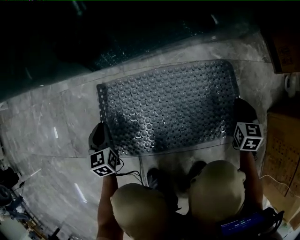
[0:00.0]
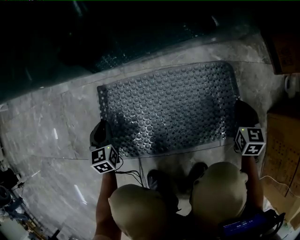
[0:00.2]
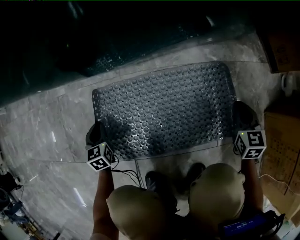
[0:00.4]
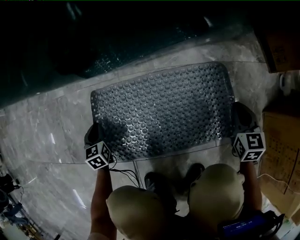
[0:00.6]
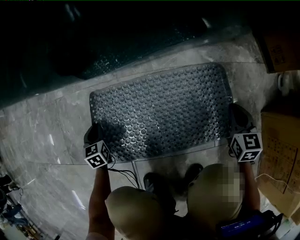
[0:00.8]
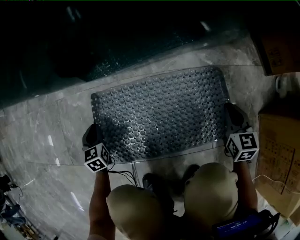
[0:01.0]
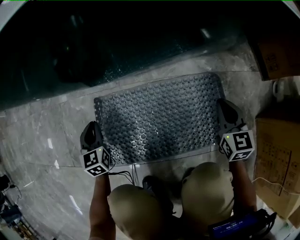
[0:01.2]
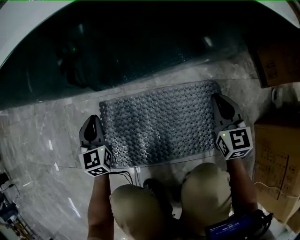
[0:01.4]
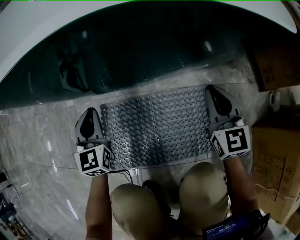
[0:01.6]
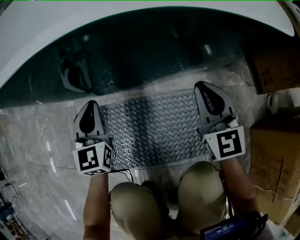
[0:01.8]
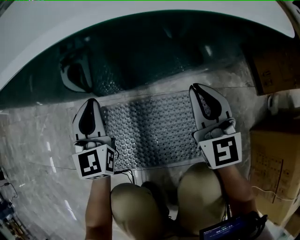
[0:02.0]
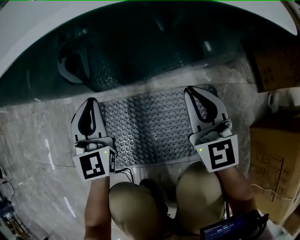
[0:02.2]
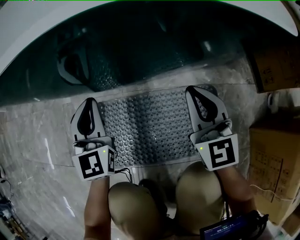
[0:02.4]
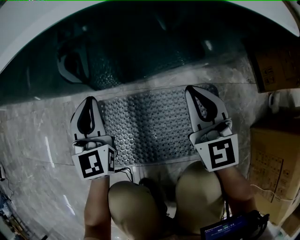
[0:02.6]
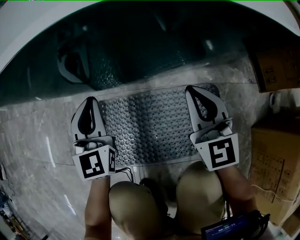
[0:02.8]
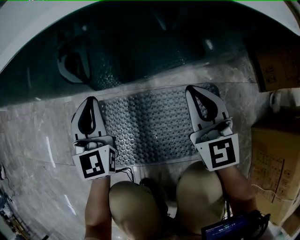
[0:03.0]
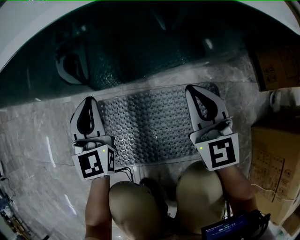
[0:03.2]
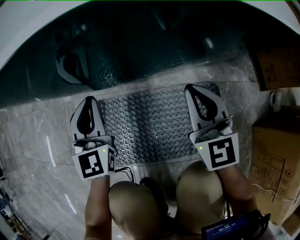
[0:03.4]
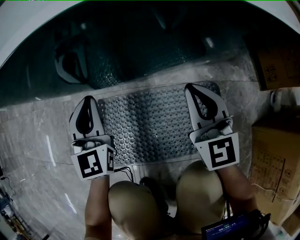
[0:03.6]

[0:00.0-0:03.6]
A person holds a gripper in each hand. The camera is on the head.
0:00.0 to 0:01.8: The right gripper is displaced upward, to the left and forward by approximately 35 cm, and angles its fingers upward, by roughly 30 degrees. Meanwhile the left gripper travels upward and forward by about 25 cm, and changes its angle by approximately 30 degrees.
0:01.8 to 0:03.6: The grippers make only small movements.

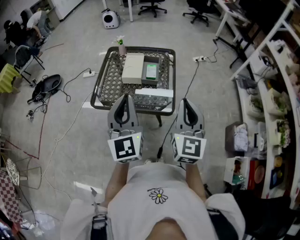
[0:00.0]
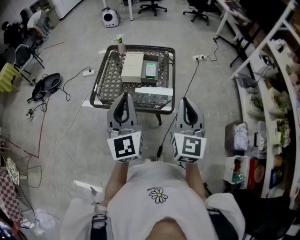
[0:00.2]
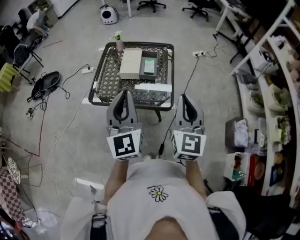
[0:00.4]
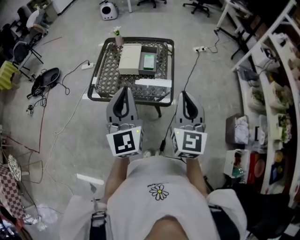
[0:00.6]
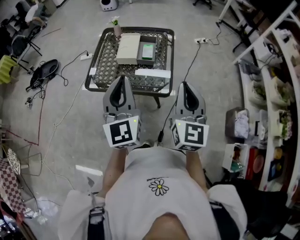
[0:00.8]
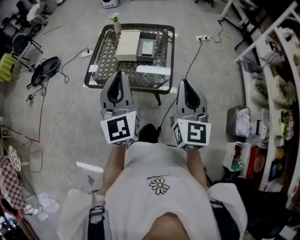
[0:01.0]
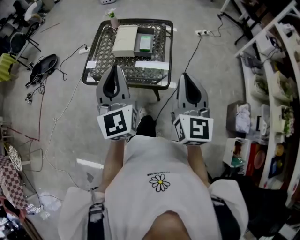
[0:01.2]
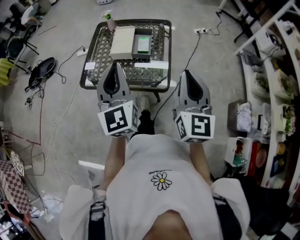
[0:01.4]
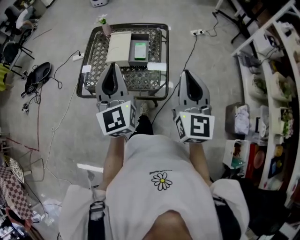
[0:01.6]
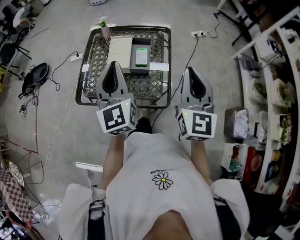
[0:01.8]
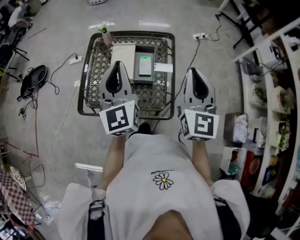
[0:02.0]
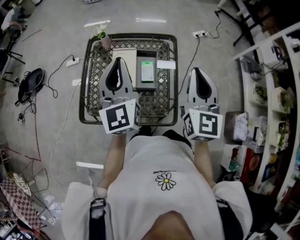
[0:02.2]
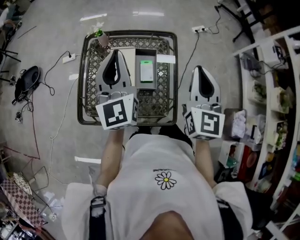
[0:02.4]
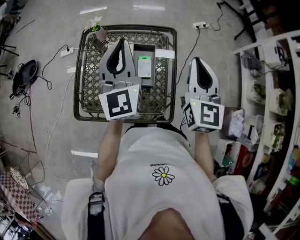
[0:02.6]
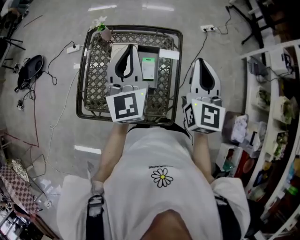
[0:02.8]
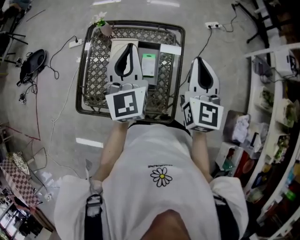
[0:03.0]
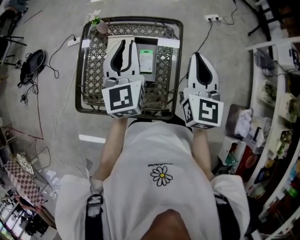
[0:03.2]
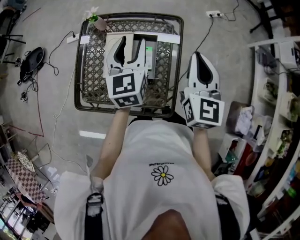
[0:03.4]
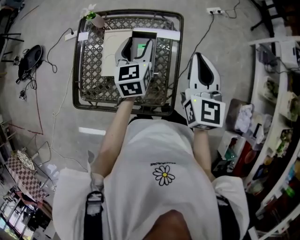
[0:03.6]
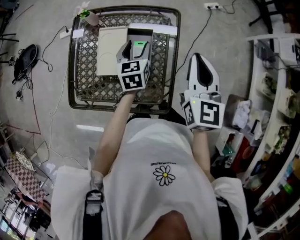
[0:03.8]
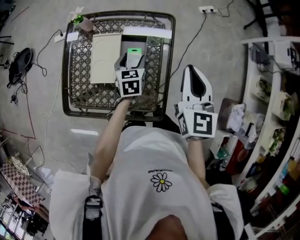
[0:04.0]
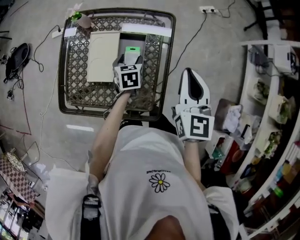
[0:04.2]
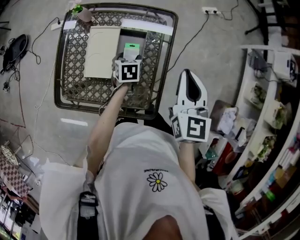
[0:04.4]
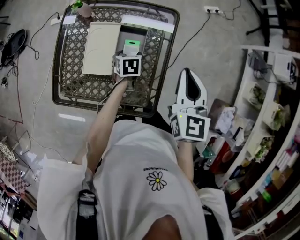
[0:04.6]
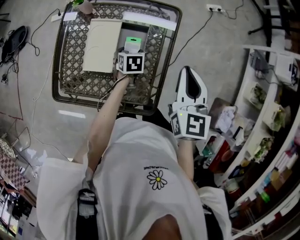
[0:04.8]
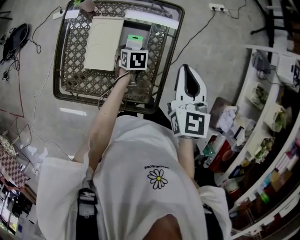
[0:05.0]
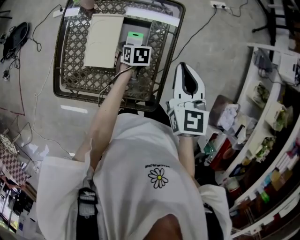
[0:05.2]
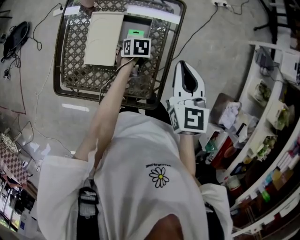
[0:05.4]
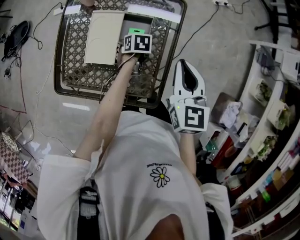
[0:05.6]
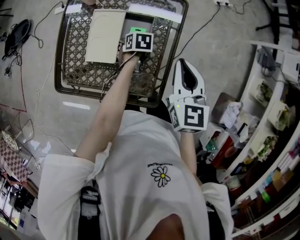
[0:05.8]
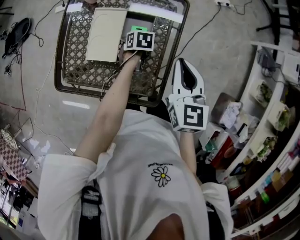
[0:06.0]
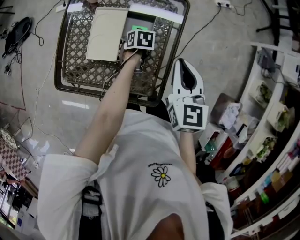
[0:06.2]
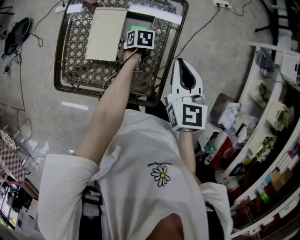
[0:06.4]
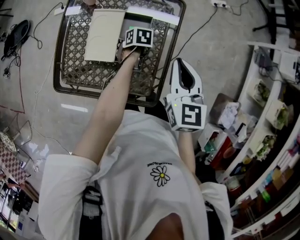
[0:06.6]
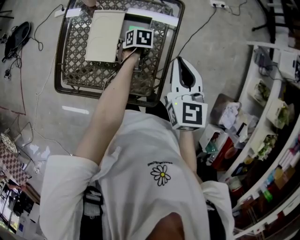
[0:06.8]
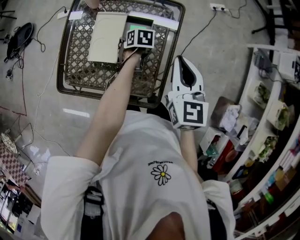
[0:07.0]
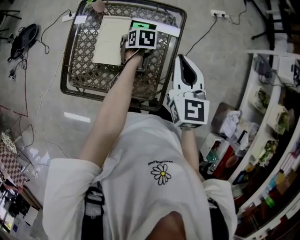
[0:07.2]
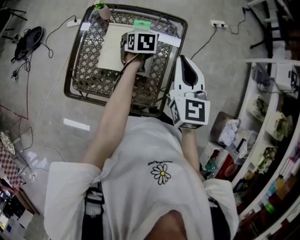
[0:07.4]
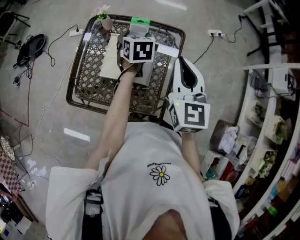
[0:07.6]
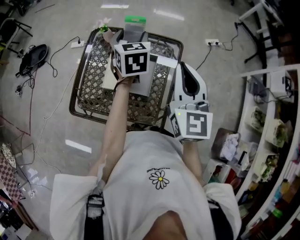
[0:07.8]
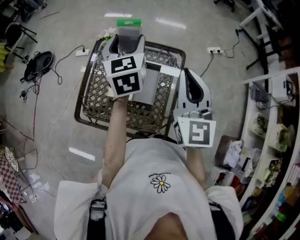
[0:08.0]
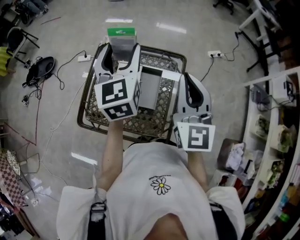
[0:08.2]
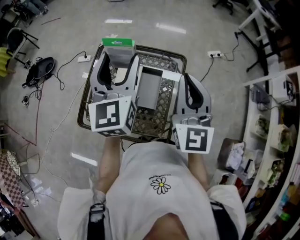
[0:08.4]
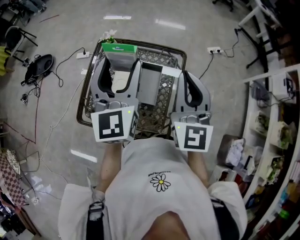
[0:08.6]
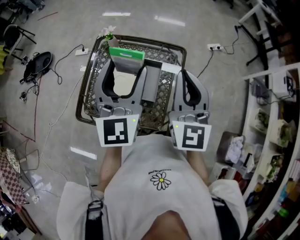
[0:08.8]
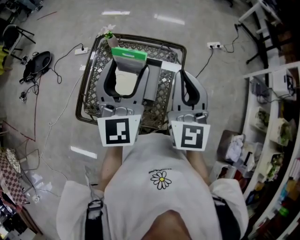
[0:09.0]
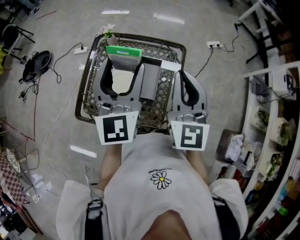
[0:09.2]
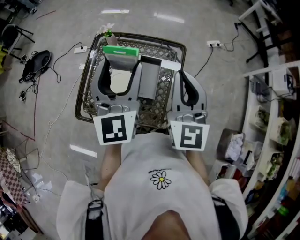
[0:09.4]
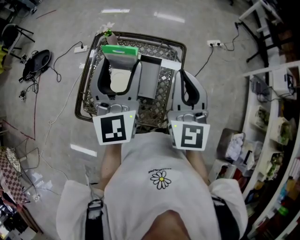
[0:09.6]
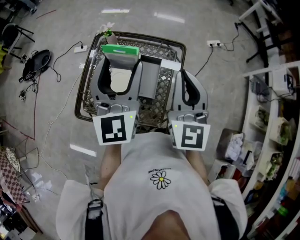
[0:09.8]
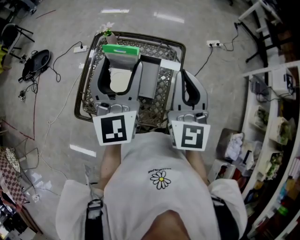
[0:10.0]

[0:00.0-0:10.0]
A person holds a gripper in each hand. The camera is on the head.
0:00.0 to 0:01.4: The right gripper moves approximately 5 cm. Meanwhile the left gripper goes about 5 cm forward.
0:01.4 to 0:02.8: Both grippers move forward, approximately 35 cm.
0:02.8 to 0:04.2: The left gripper goes roughly 35 cm downward, angles its fingers downward, by approximately 50 degrees, and opens. The right gripper is displaced downward by about 10 cm.
0:04.2 to 0:05.8: The left gripper is displaced downward by approximately 10 cm, and rotates approximately 20 degrees. The right gripper shifts by some 5 cm.
0:05.8 to 0:07.2: The left gripper travels upward by roughly 10 cm.
0:07.2 to 0:08.6: The left gripper moves upward, some 40 cm, and tips its fingers upward by some 70 degrees; the right gripper moves upward, approximately 15 cm, and rotates about 20 degrees.
0:08.6 to 0:10.0: There are only small adjustments of the grippers.

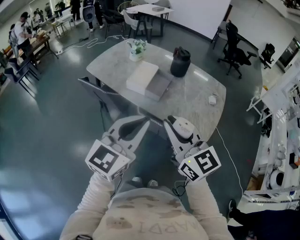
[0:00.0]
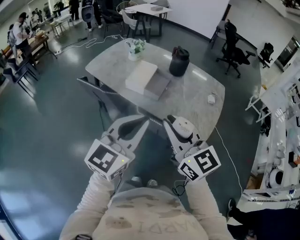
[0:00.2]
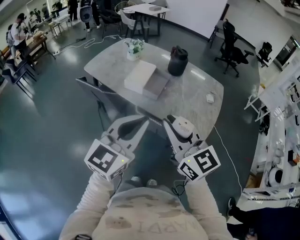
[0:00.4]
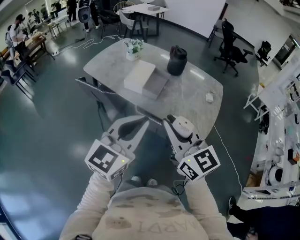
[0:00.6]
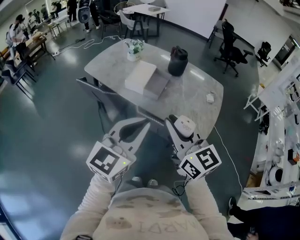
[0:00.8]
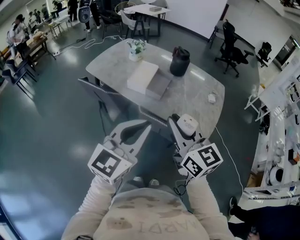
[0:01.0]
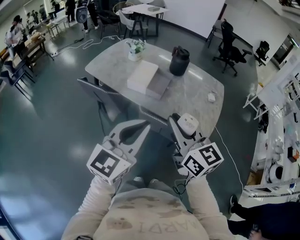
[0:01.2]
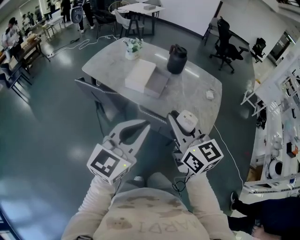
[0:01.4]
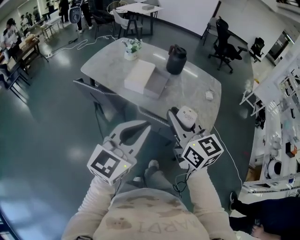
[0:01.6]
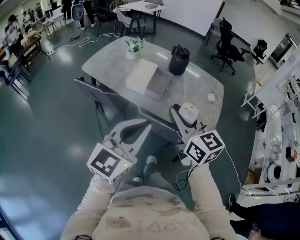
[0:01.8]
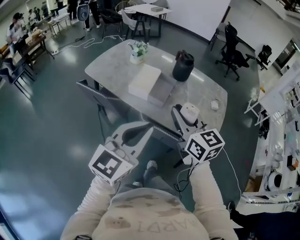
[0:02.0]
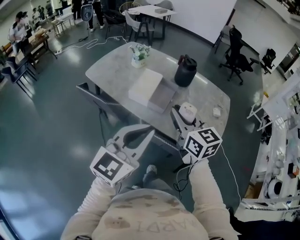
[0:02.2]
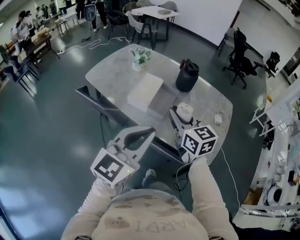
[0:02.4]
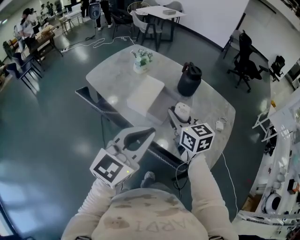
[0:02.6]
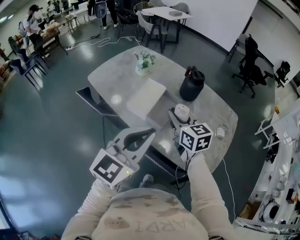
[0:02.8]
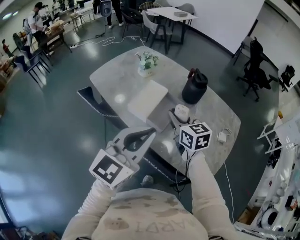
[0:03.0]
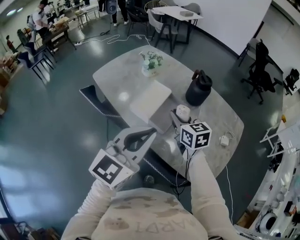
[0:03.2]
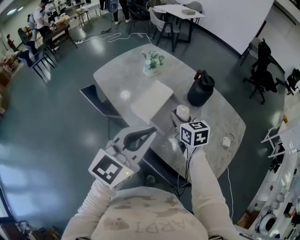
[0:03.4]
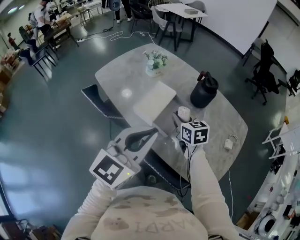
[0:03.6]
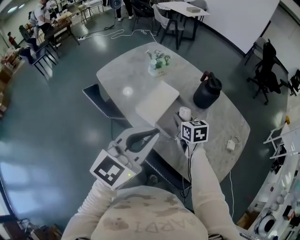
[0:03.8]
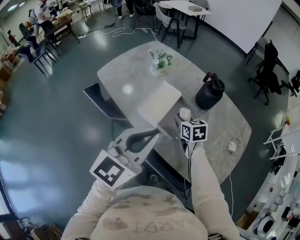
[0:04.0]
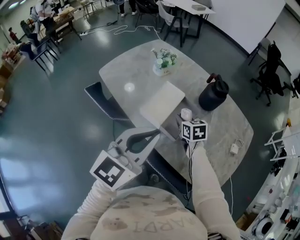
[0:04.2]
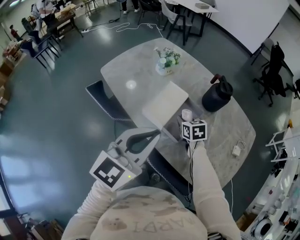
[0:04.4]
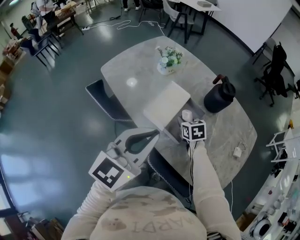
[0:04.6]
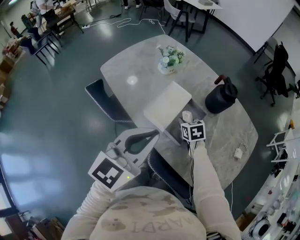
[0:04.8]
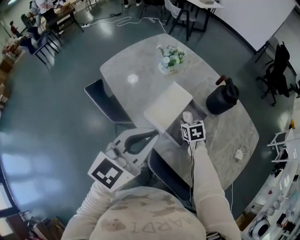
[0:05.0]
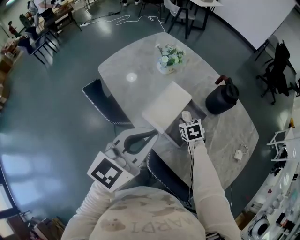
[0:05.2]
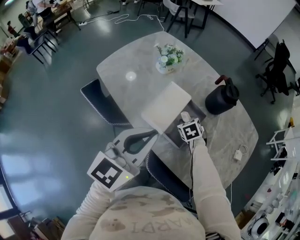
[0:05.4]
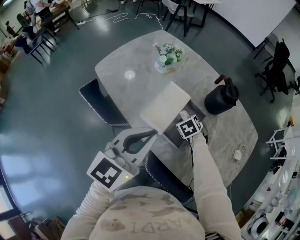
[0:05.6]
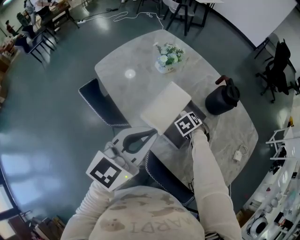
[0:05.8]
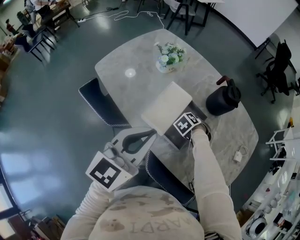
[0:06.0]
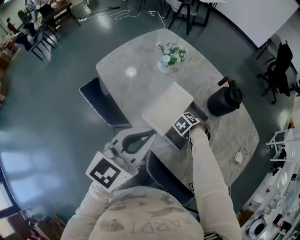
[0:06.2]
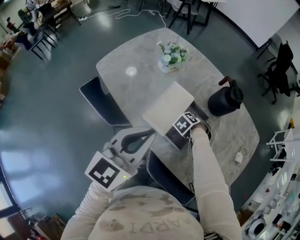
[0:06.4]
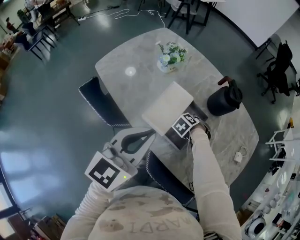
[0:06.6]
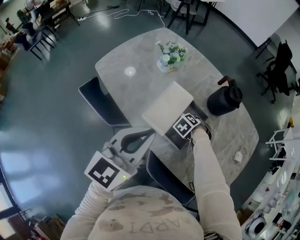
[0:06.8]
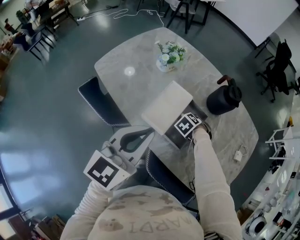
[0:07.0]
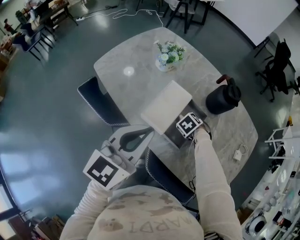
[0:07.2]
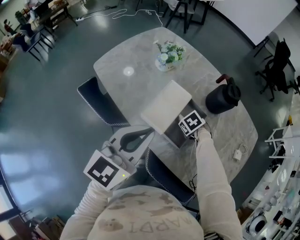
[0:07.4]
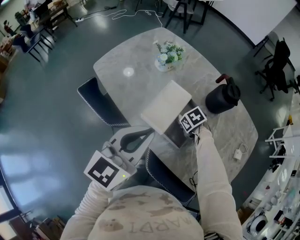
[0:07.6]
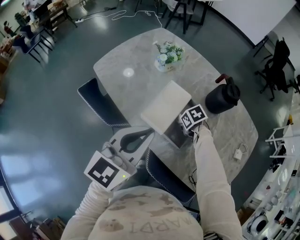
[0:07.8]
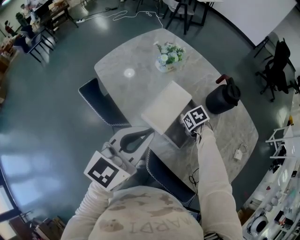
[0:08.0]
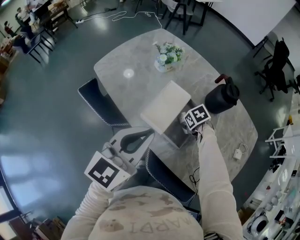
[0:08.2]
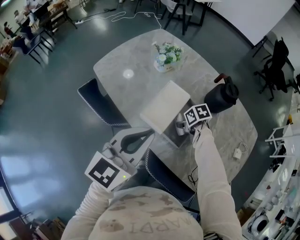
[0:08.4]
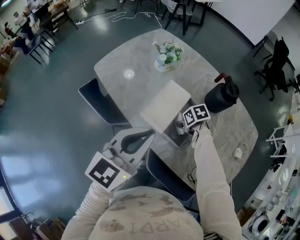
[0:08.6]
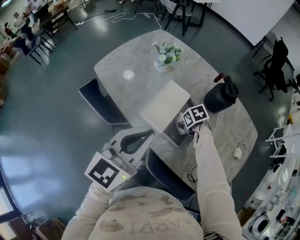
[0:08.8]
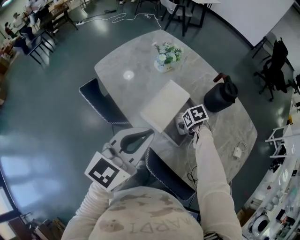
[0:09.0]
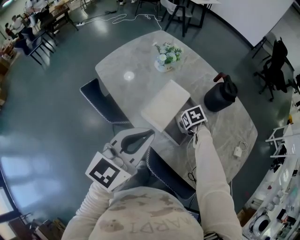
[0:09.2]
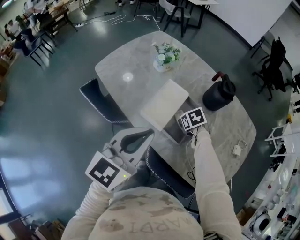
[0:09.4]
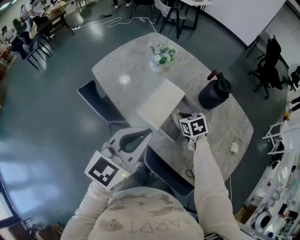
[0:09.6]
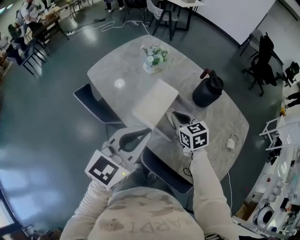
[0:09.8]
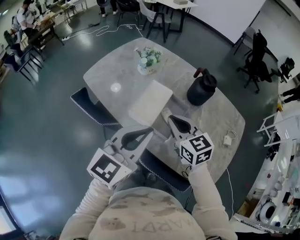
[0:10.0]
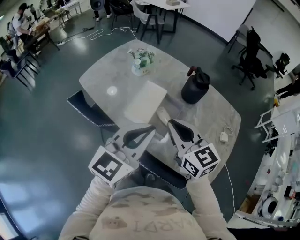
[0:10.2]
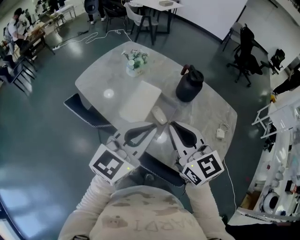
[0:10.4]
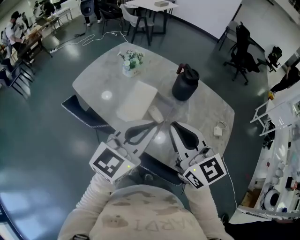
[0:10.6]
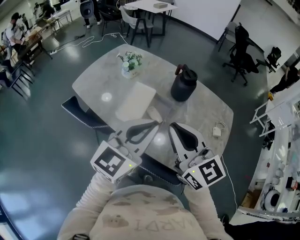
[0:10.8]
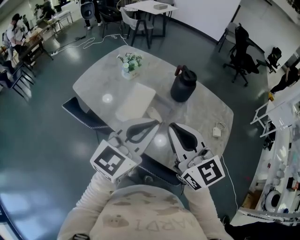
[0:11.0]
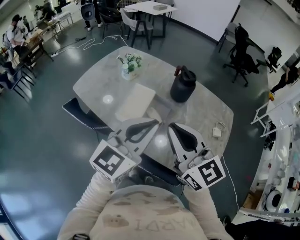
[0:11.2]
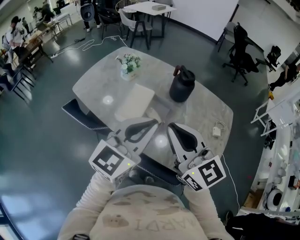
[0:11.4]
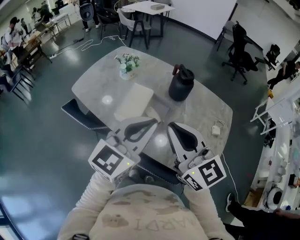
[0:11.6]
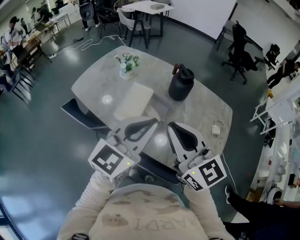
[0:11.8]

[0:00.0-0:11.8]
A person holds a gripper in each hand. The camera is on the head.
0:00.0 to 0:01.4: The grippers stay close to where they were, moving slightly.
0:01.4 to 0:03.0: The grippers both shift forward by roughly 30 cm. The right gripper rotates some 20 degrees.
0:03.0 to 0:04.4: The left gripper is displaced forward and to the left by about 10 cm. The right gripper shifts approximately 20 cm downward and forward, and changes its angle by roughly 20 degrees.
0:04.4 to 0:06.0: The left gripper ends up roughly 10 cm from where it was, while the right gripper is displaced downward by some 10 cm, and points its fingers roughly 40 degrees further downward.
0:06.0 to 0:07.4: The grippers move only a little.
0:07.4 to 0:08.8: The right gripper changes its angle by some 20 degrees.
0:08.8 to 0:10.4: The right gripper moves upward, roughly 35 cm, angles its fingers upward, by roughly 70 degrees, and closes up. Meanwhile the left gripper ends up about 10 cm from where it was.
0:10.4 to 0:11.8: The right gripper changes place by roughly 5 cm.
